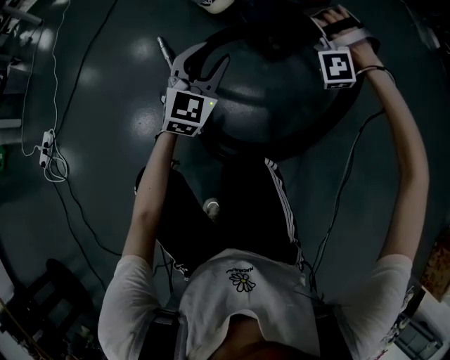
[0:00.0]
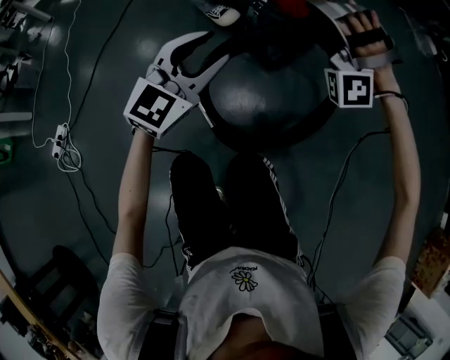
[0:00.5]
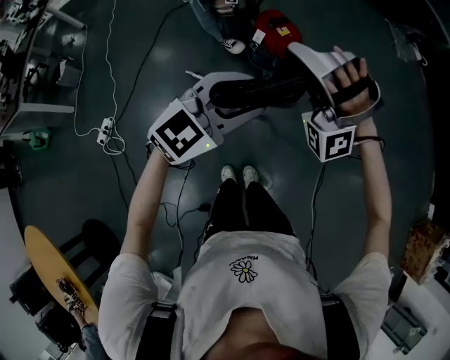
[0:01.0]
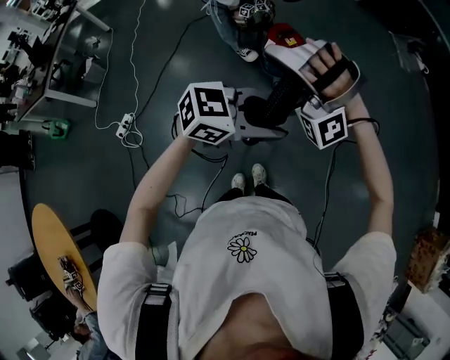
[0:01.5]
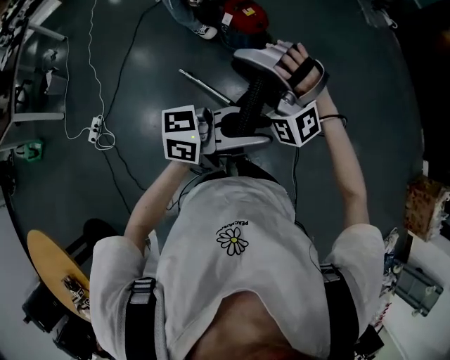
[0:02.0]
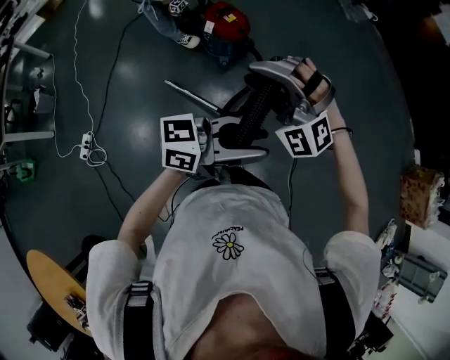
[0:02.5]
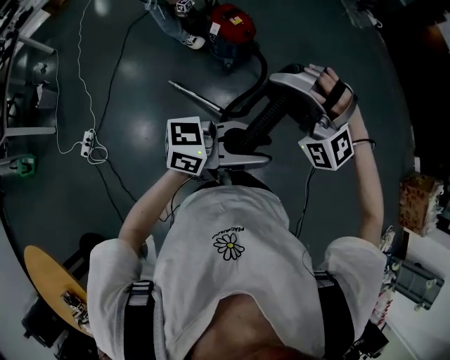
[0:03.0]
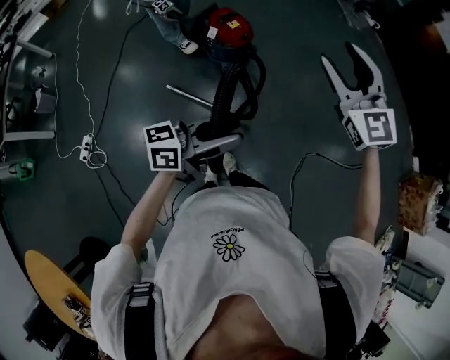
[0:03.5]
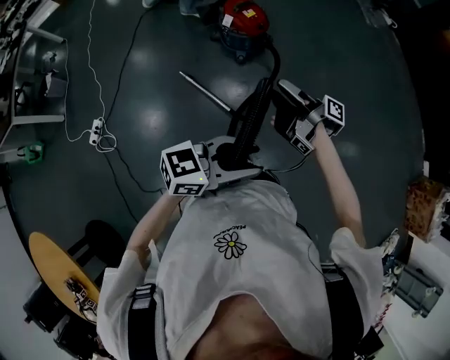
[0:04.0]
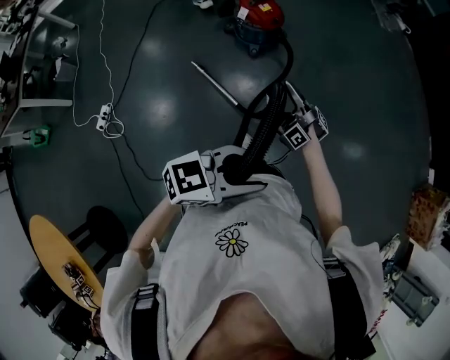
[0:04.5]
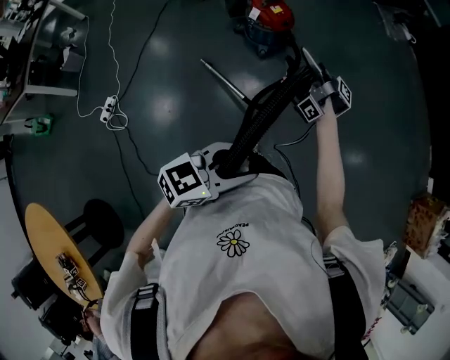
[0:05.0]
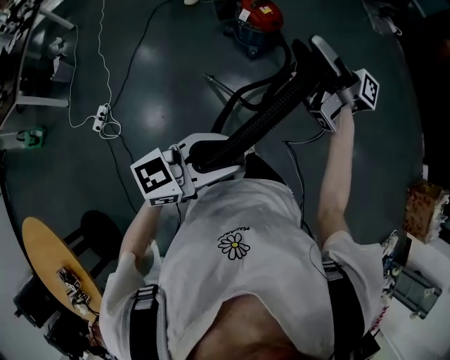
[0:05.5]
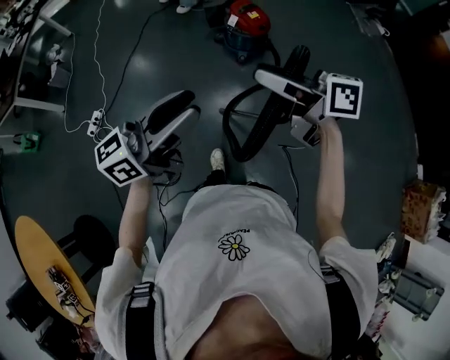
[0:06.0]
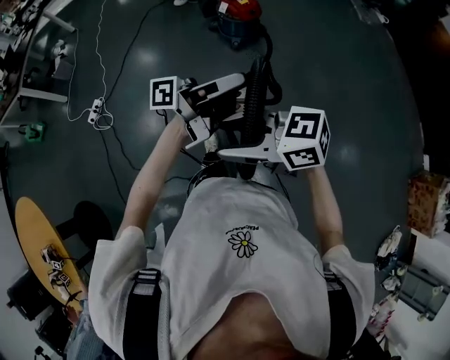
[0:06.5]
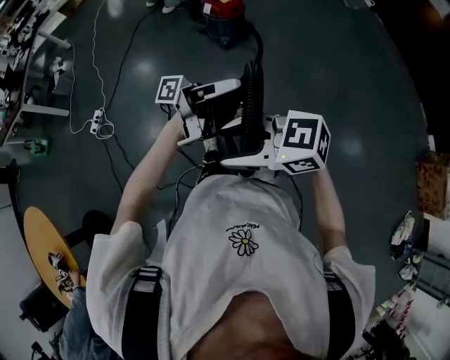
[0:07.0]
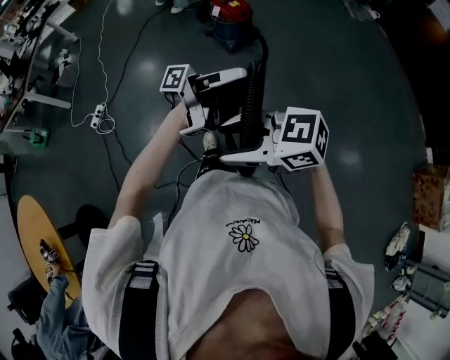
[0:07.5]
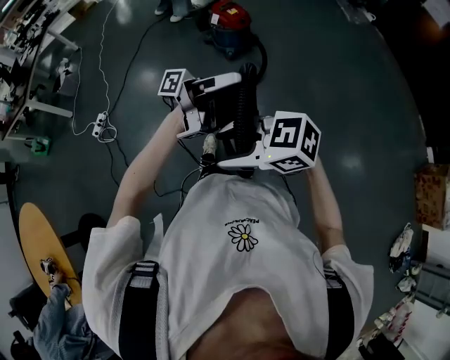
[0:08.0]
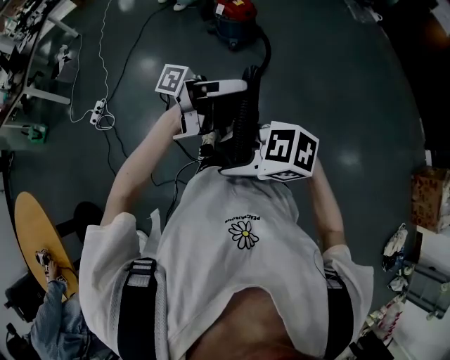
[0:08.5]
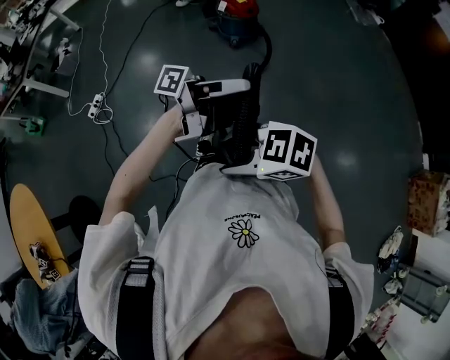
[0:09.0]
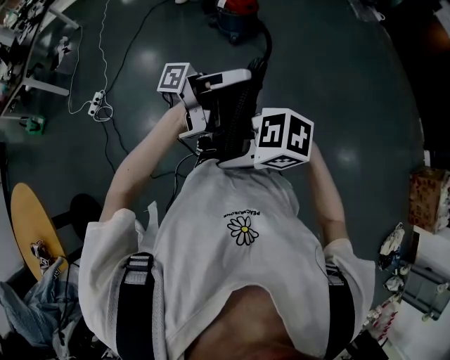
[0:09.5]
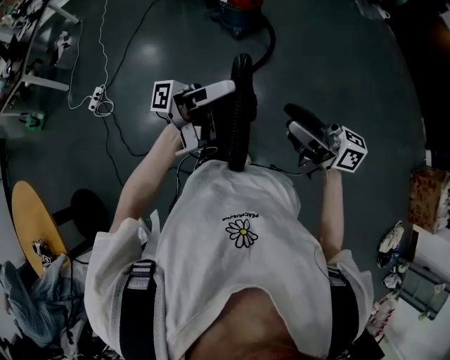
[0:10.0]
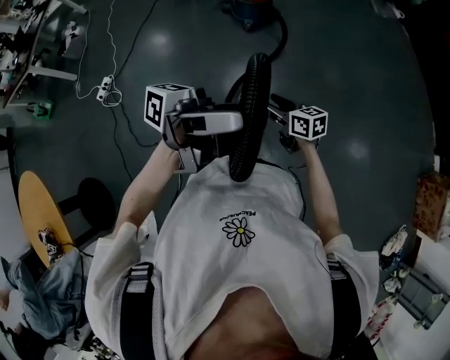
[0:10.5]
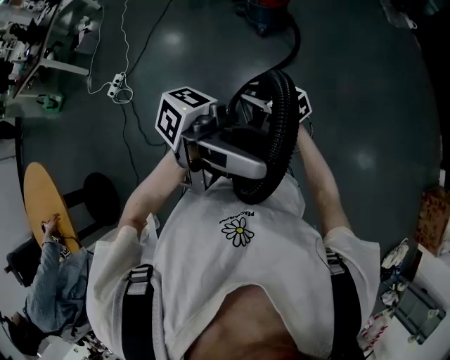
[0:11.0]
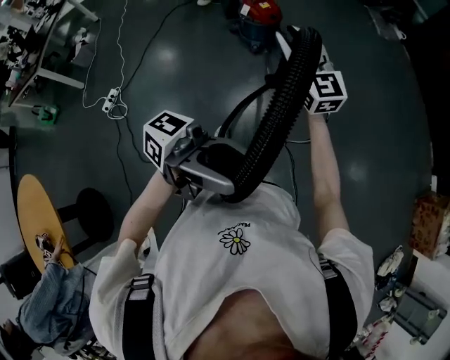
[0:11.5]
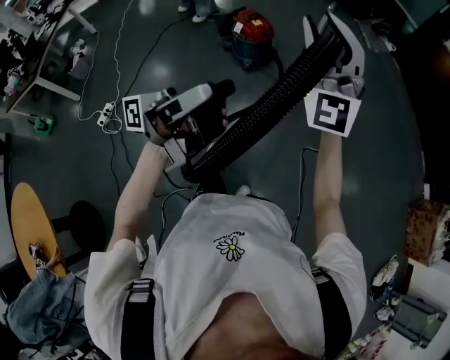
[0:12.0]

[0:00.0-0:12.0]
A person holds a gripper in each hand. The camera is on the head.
0:00.0 to 0:02.0: The two grippers go roughly 70 cm upward. The left gripper turns by some 90 degrees. The right gripper turns by some 50 degrees, and closes.
0:02.0 to 0:04.0: The left gripper is displaced downward by roughly 5 cm; the right gripper shifts about 15 cm downward, turns by roughly 170 degrees, and opens.
0:04.0 to 0:06.0: The left gripper shifts by approximately 20 cm, and rotates roughly 40 degrees, while the right gripper moves upward, about 20 cm, and twists some 50 degrees counterclockwise, seen from behind.
0:06.0 to 0:08.0: The left gripper ends up some 25 cm from where it was, and rolls counterclockwise, seen from behind, by about 60 degrees. The right gripper shifts by roughly 35 cm, and changes its angle by some 50 degrees.
0:08.0 to 0:10.0: The right gripper changes place by some 15 cm, and angles its fingers upward, by some 40 degrees; the left gripper changes place by roughly 5 cm.
0:10.0 to 0:12.0: The right gripper is displaced upward by approximately 20 cm, and rotates around the line of its fingers by some 110 degrees, counterclockwise from behind, while the left gripper moves upward, approximately 10 cm, and changes its angle by approximately 20 degrees.

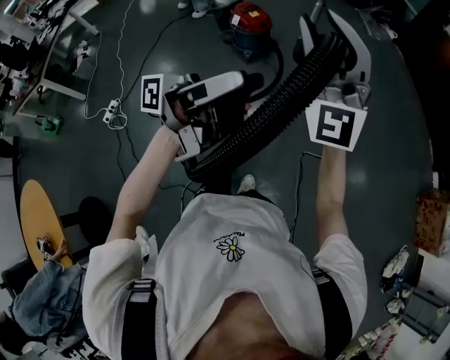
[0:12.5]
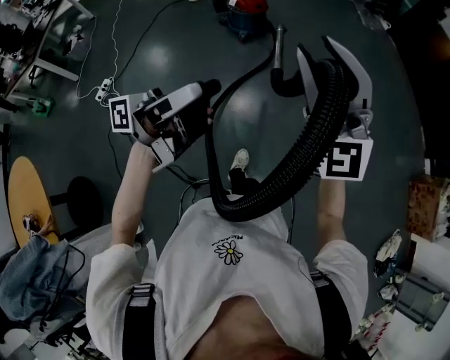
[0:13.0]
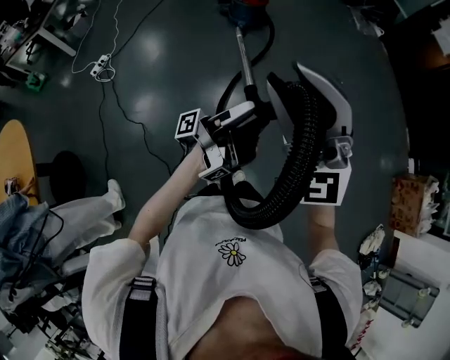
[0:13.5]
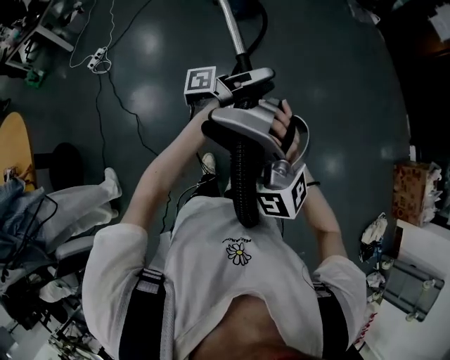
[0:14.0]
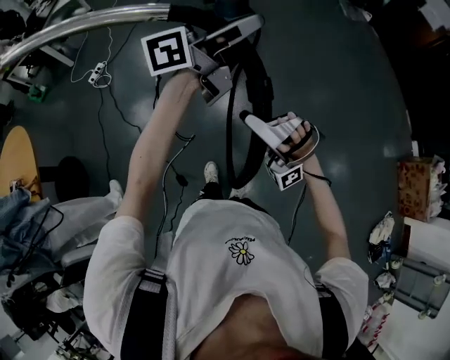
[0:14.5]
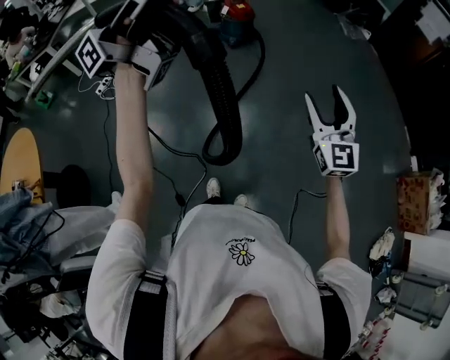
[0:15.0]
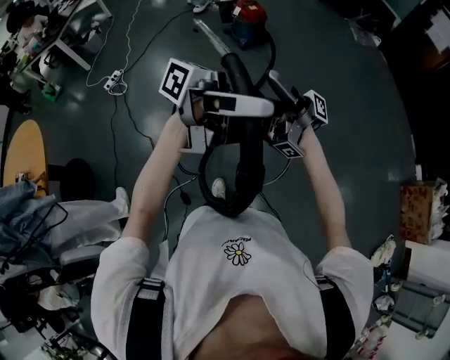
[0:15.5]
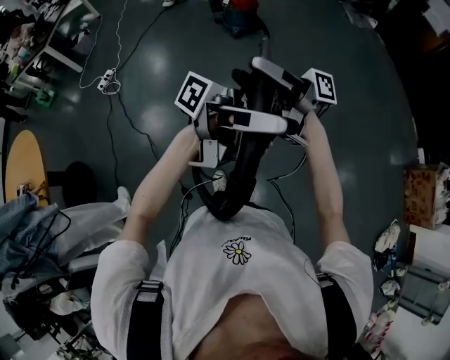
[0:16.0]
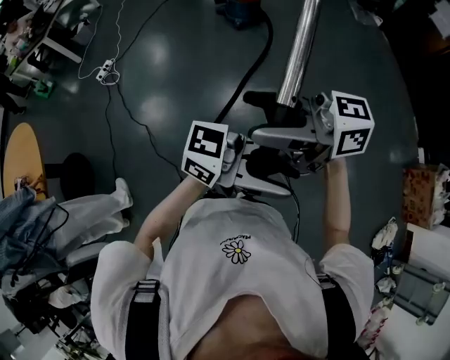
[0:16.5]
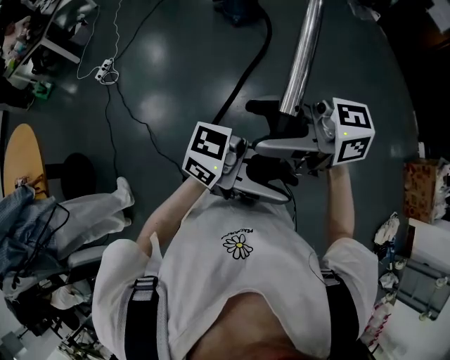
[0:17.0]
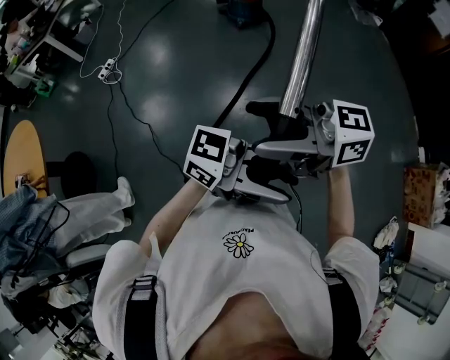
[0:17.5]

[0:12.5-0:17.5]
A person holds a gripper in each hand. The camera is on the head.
0:12.5 to 0:15.0: The left gripper shifts by roughly 30 cm, turns by about 40 degrees, and closes. Meanwhile the right gripper shifts by some 40 cm, swivels some 30 degrees, and opens its fingers.
0:15.0 to 0:17.5: The left gripper ends up some 40 cm from where it was, and points its fingers about 30 degrees further downward. The right gripper changes place by roughly 20 cm, and changes its angle by about 90 degrees.

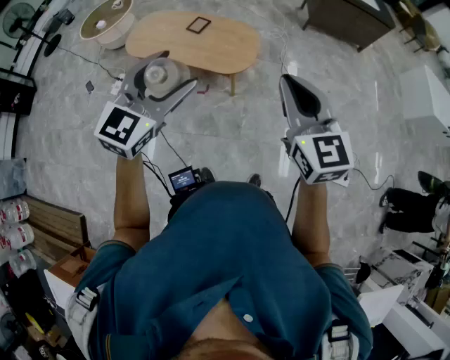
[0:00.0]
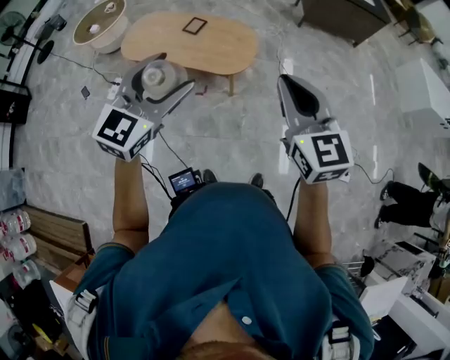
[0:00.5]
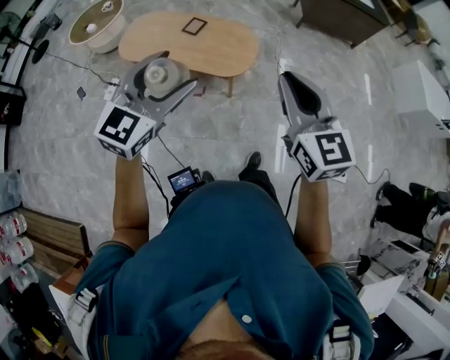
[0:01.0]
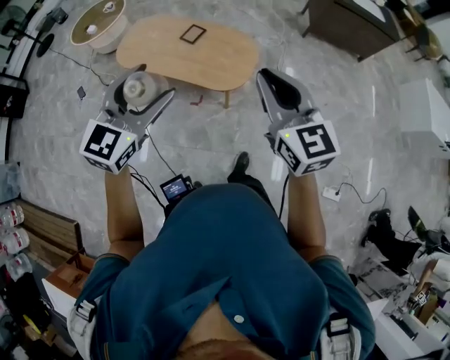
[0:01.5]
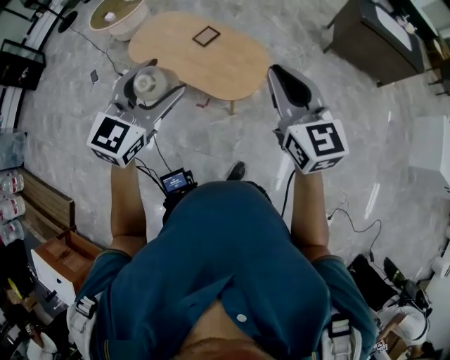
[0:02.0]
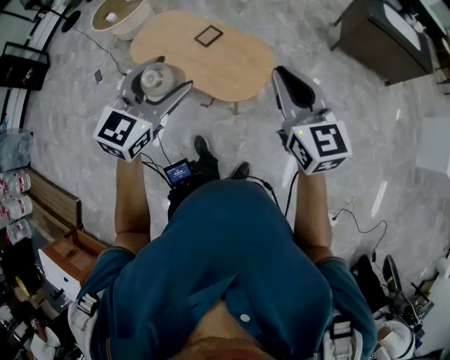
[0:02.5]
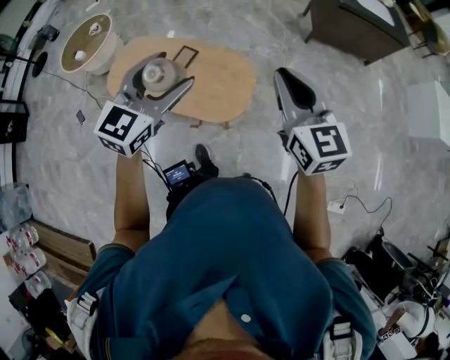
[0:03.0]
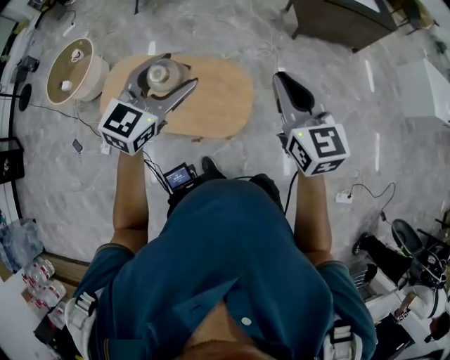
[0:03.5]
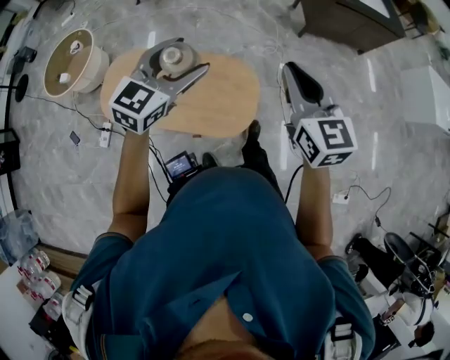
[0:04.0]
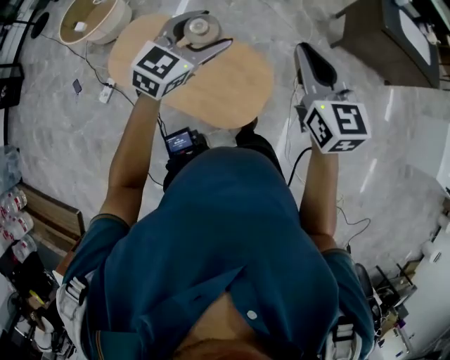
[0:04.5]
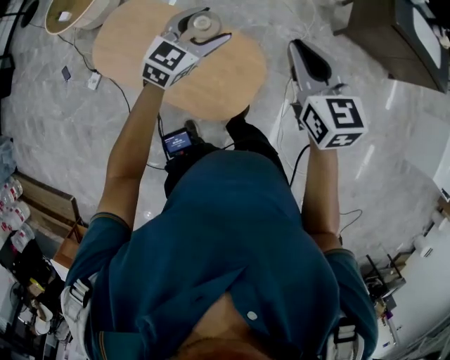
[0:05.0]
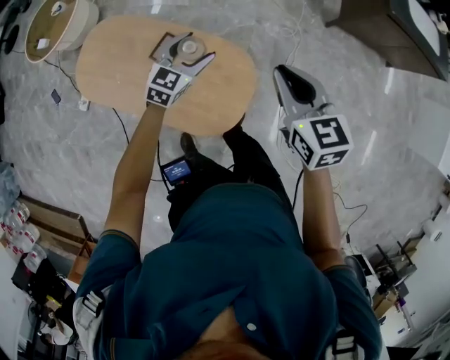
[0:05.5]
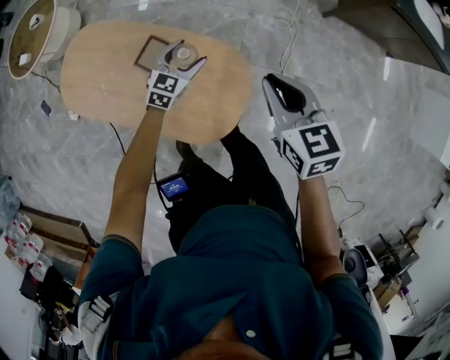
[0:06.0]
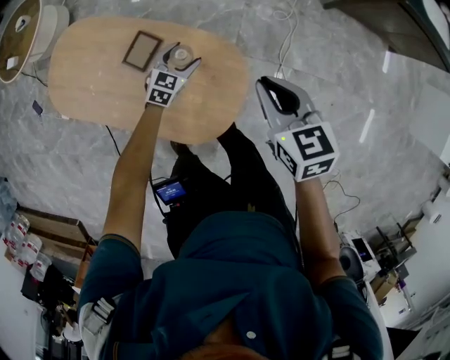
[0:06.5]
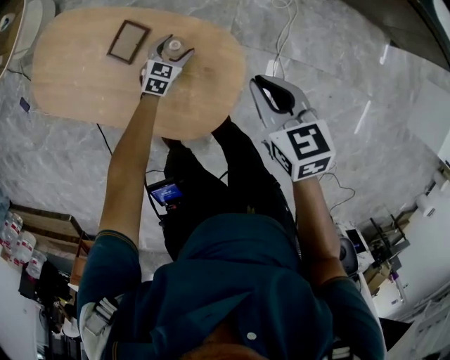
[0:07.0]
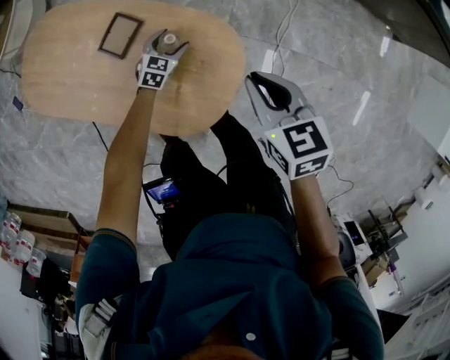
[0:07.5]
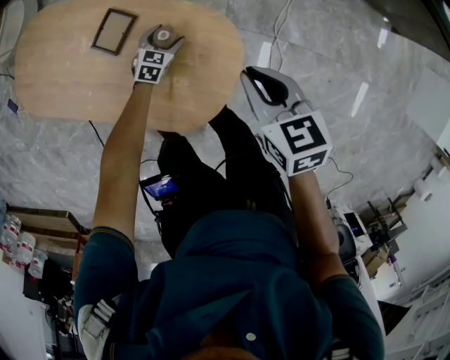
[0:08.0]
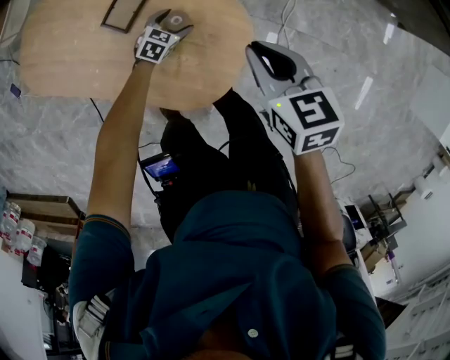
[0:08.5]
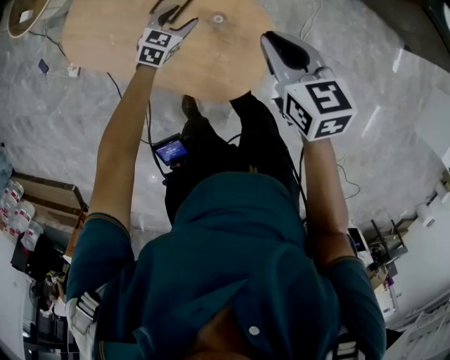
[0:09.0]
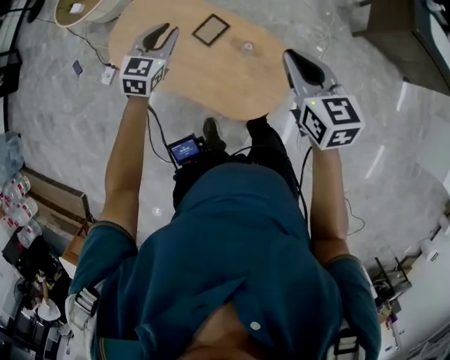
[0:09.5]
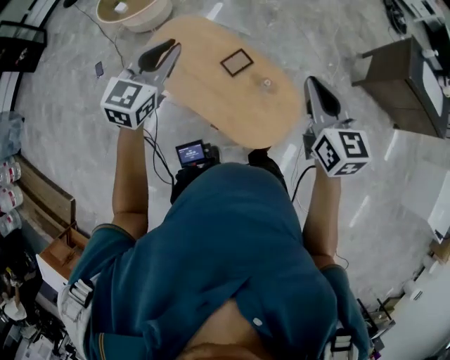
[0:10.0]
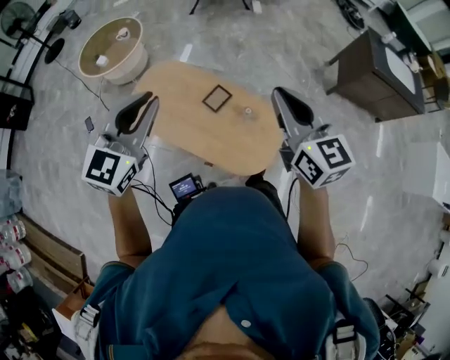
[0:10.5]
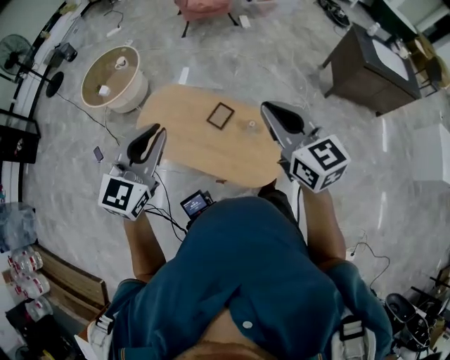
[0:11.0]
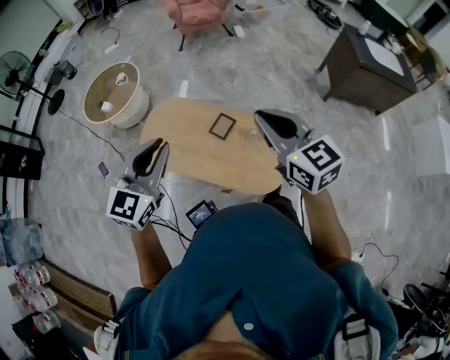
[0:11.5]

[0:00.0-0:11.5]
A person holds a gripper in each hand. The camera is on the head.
0:00.0 to 0:02.0: The grippers both shift forward by about 25 cm.
0:02.0 to 0:04.0: Both grippers move forward, about 30 cm. The left gripper turns by about 20 degrees. The right gripper changes its angle by approximately 20 degrees.
0:04.0 to 0:06.0: The grippers both shift downward and forward by approximately 40 cm. The right gripper rotates some 30 degrees. The left gripper turns by roughly 20 degrees.
0:06.0 to 0:07.5: The left gripper is displaced downward by approximately 25 cm. Meanwhile the right gripper travels downward by approximately 15 cm.
0:07.5 to 0:09.5: The right gripper goes approximately 30 cm upward and to the left, while the left gripper goes roughly 50 cm upward and to the left, changes its angle by about 20 degrees, and closes.
0:09.5 to 0:11.5: The left gripper travels upward and backward by about 35 cm, and swivels approximately 20 degrees. The right gripper goes about 25 cm upward and to the left.
